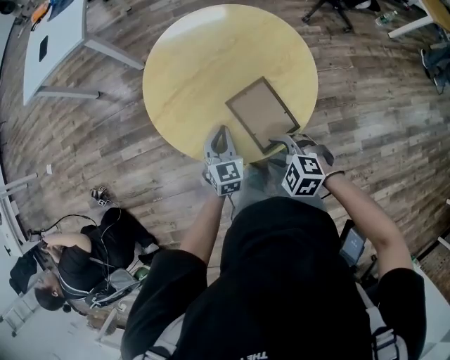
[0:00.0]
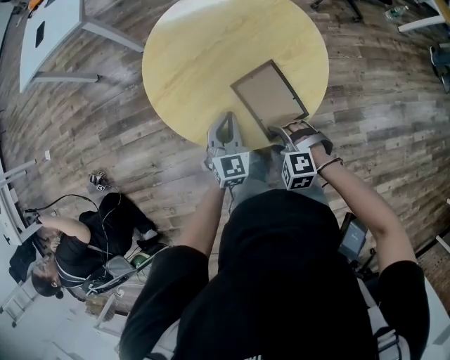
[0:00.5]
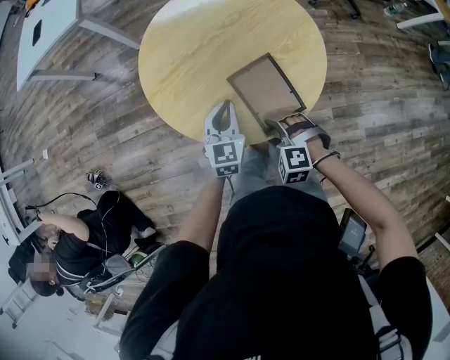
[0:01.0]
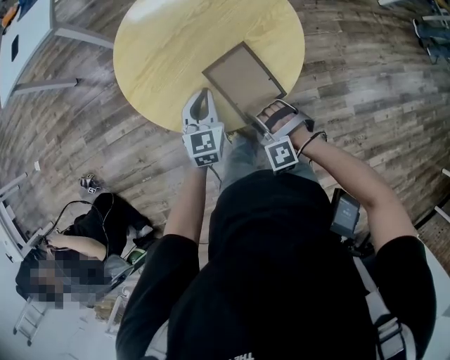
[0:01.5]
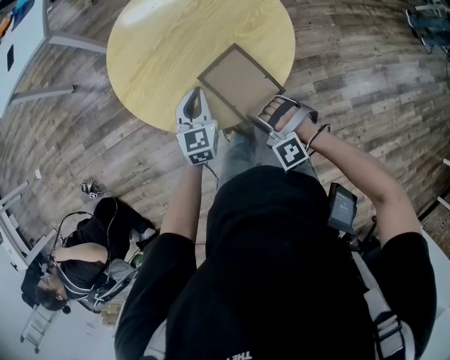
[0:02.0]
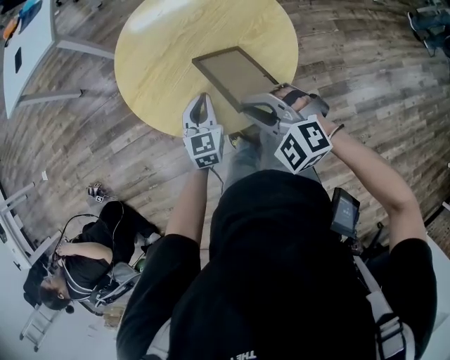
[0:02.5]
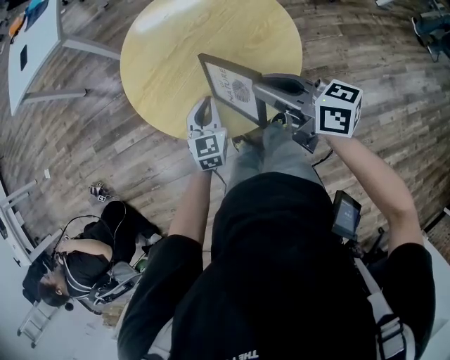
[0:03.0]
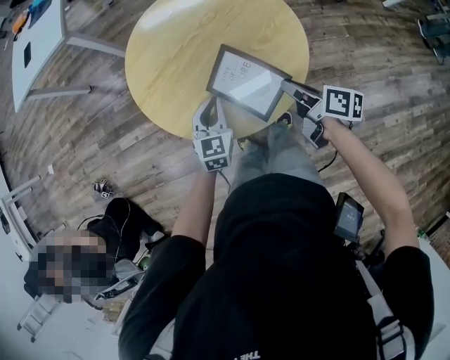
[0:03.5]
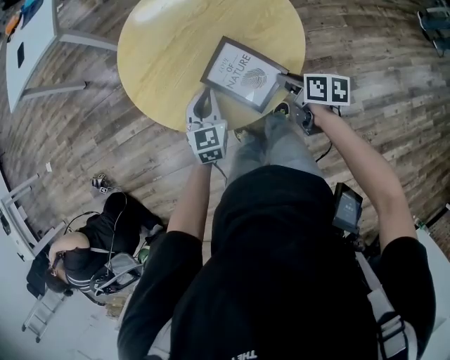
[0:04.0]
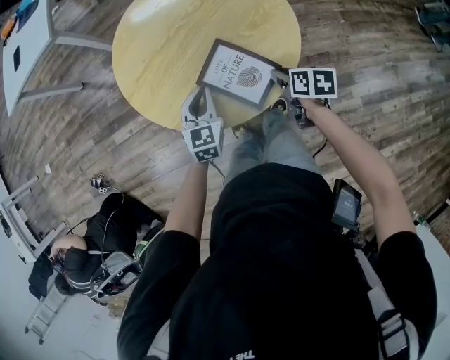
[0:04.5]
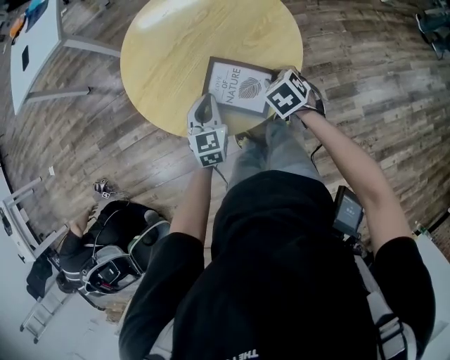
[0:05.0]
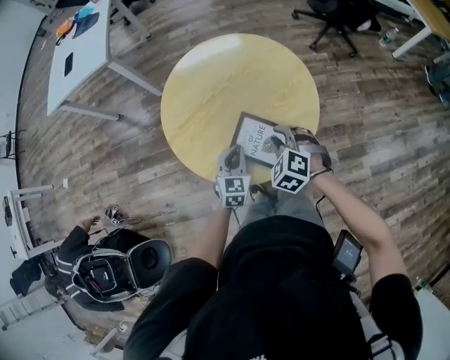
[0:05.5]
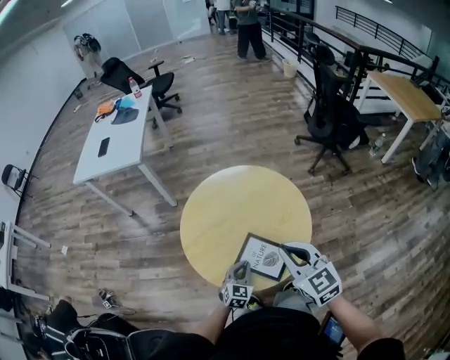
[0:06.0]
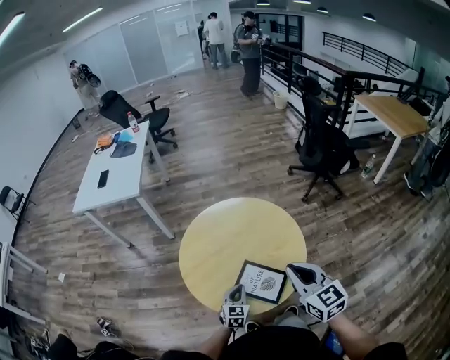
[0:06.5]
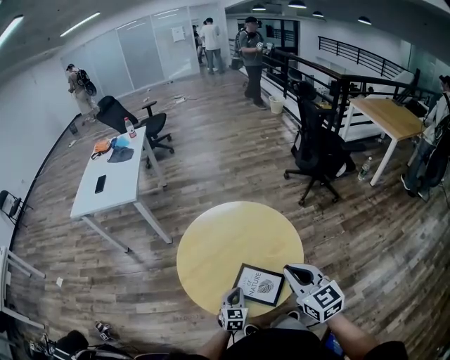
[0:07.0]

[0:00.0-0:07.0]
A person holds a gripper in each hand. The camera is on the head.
0:00.0 to 0:02.0: The right gripper turns by some 40 degrees, and closes.
0:02.0 to 0:03.5: The right gripper heads to the right, forward and upward, covering about 20 cm, and rotates around the line of its fingers by approximately 130 degrees, clockwise from behind.
0:03.5 to 0:05.0: The right gripper is displaced downward by about 5 cm, and rolls counterclockwise, seen from behind, by approximately 60 degrees.
0:05.0 to 0:07.0: The right gripper travels upward by approximately 30 cm, tilts its fingers about 50 degrees upward, and closes its fingers.

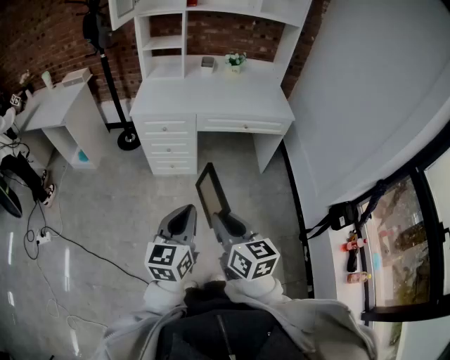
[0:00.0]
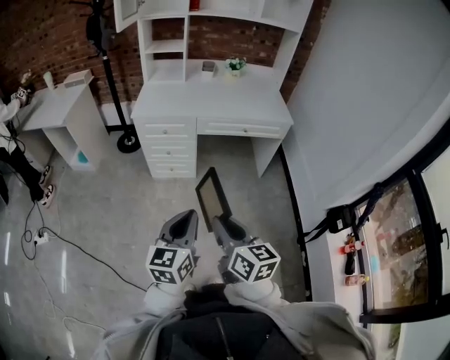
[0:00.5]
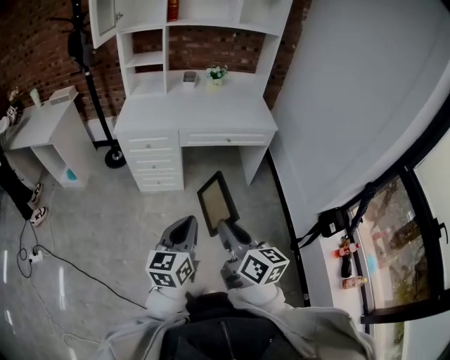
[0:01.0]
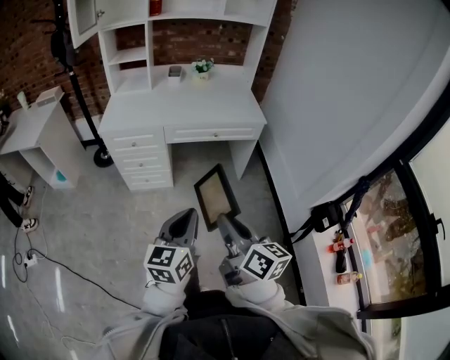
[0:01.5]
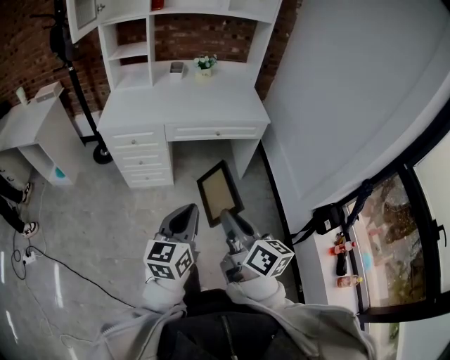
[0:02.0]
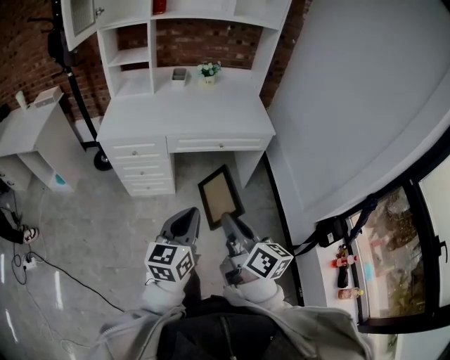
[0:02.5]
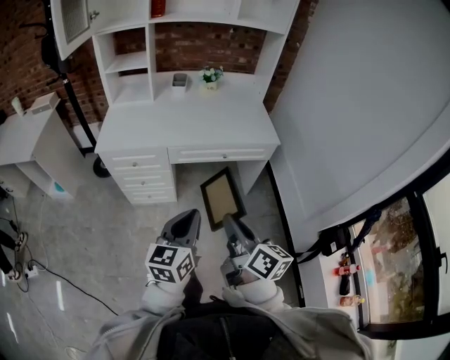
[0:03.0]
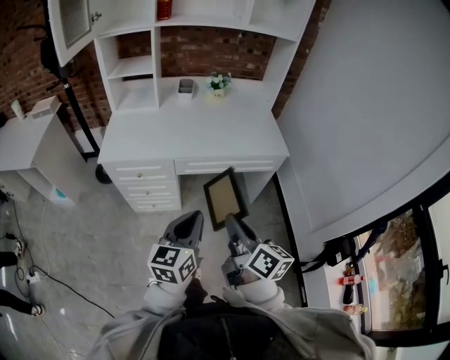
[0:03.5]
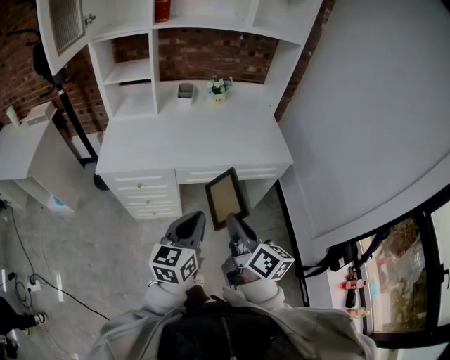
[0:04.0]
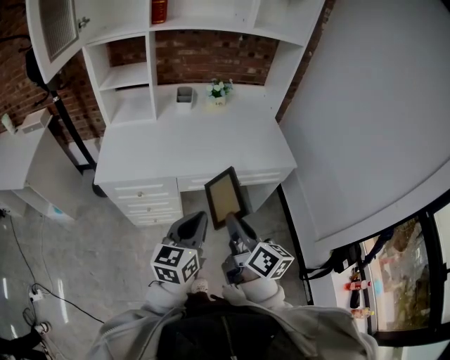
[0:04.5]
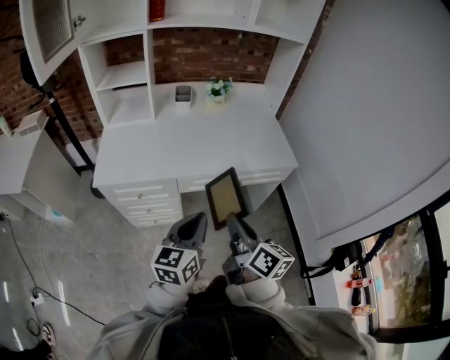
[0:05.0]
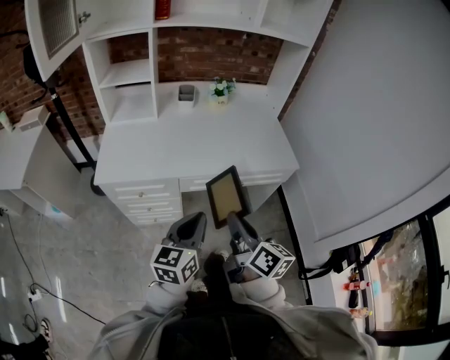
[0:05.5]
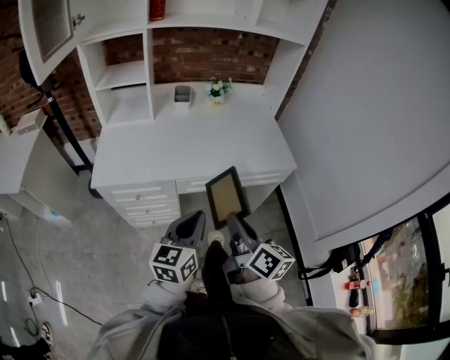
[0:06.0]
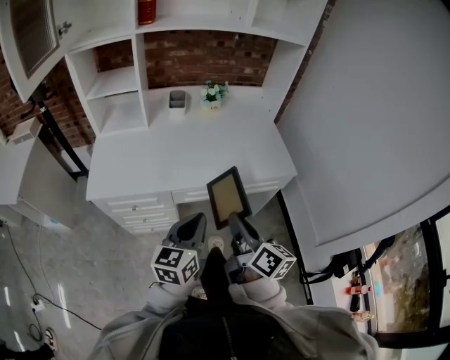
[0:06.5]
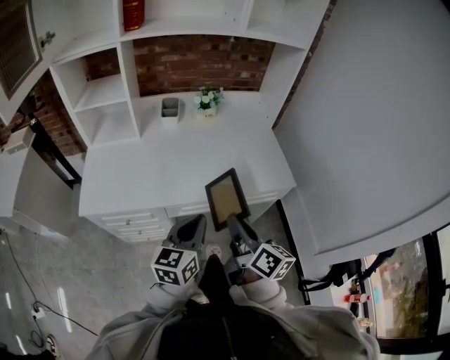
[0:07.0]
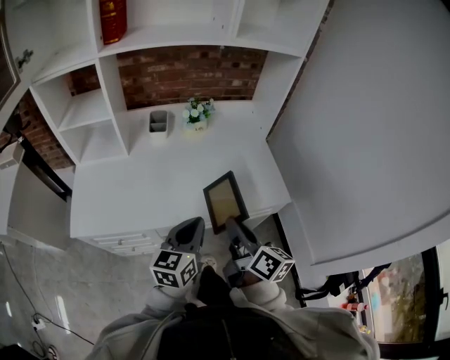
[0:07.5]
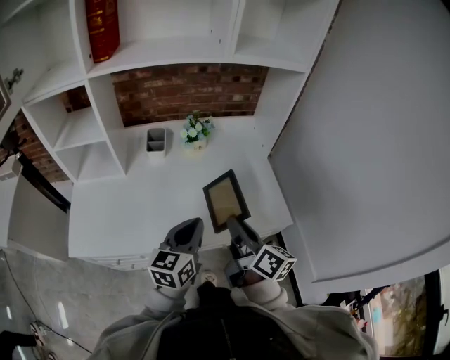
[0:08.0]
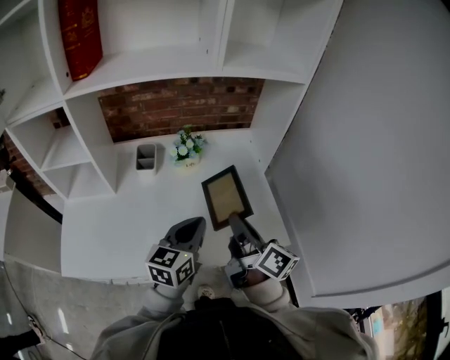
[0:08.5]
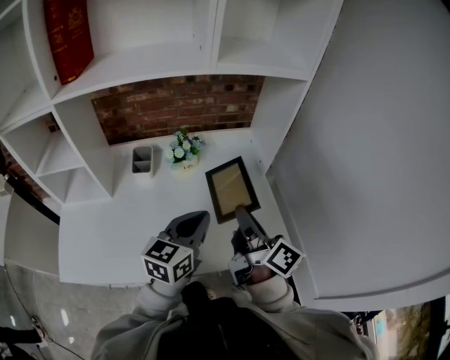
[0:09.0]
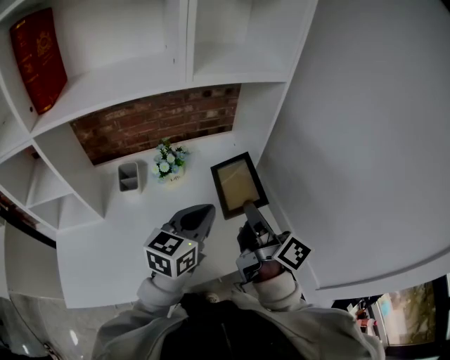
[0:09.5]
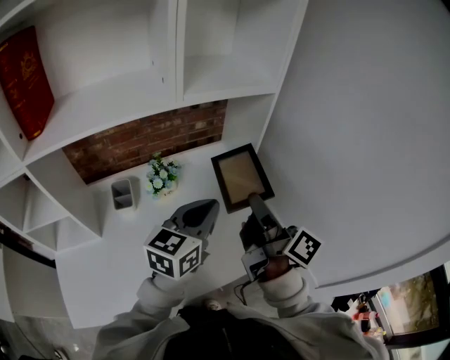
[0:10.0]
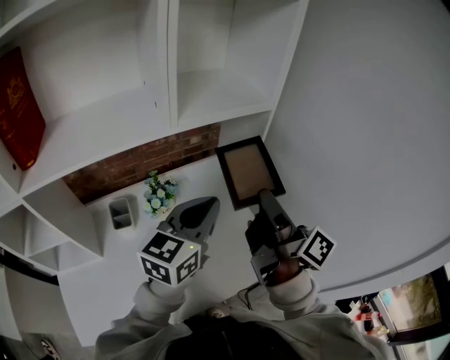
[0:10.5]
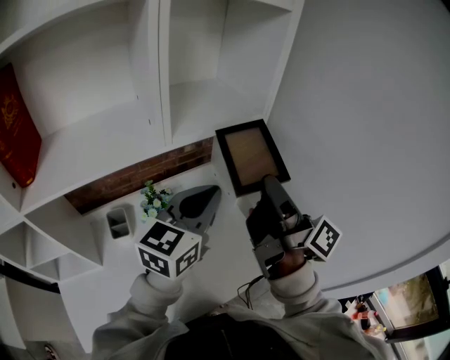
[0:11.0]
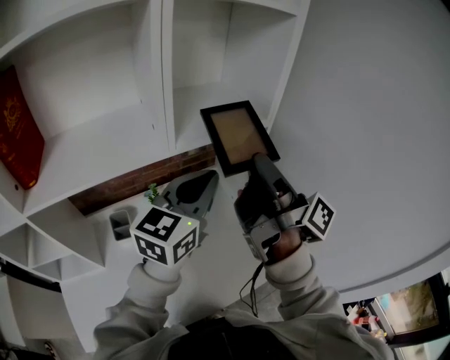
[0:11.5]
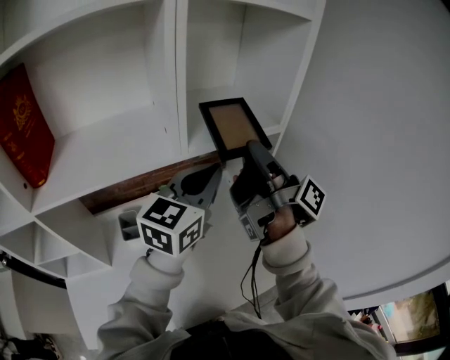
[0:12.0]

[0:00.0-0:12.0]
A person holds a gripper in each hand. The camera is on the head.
0:00.0 to 0:02.0: The grippers both shift to the right and forward by roughly 15 cm. The right gripper swivels approximately 20 degrees.
0:02.0 to 0:04.0: Both grippers move forward, roughly 30 cm.
0:04.0 to 0:06.0: The grippers both shift forward by some 5 cm.
0:06.0 to 0:08.0: Both grippers move forward, approximately 30 cm.
0:08.0 to 0:10.0: Both grippers travel together forward, upward and to the right, some 25 cm. The left gripper swivels roughly 20 degrees. Meanwhile the right gripper turns by roughly 20 degrees.
0:10.0 to 0:12.0: The two grippers go about 20 cm upward and forward. The right gripper swivels approximately 30 degrees.

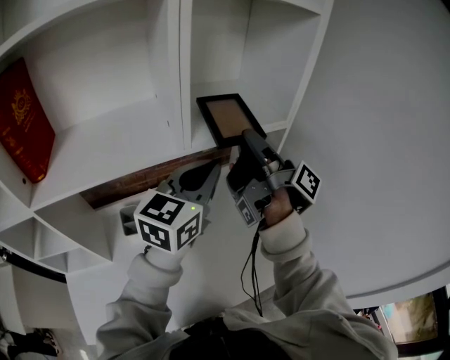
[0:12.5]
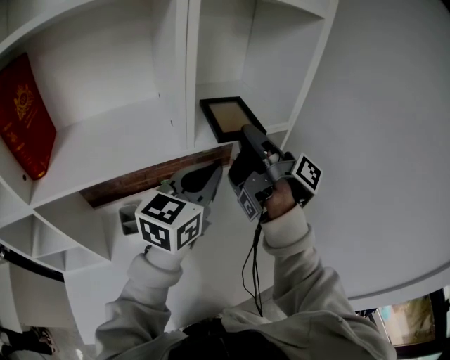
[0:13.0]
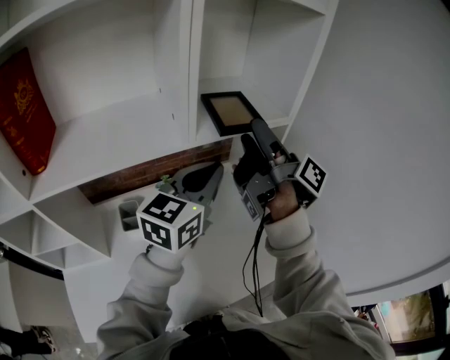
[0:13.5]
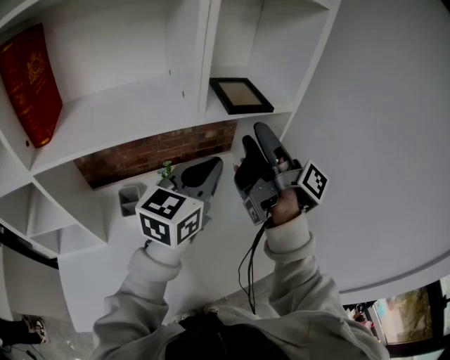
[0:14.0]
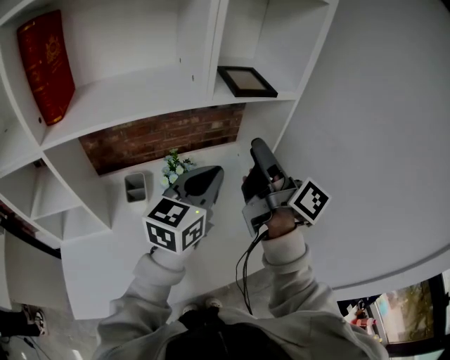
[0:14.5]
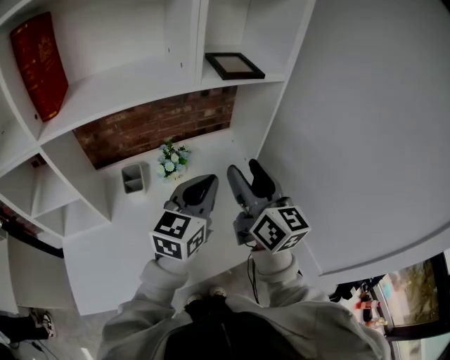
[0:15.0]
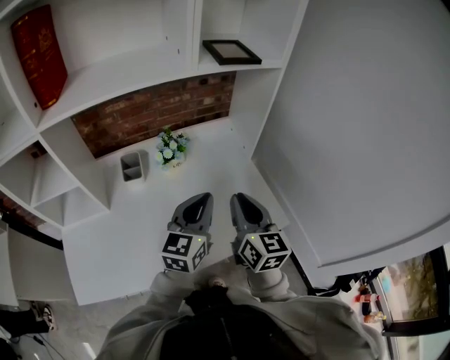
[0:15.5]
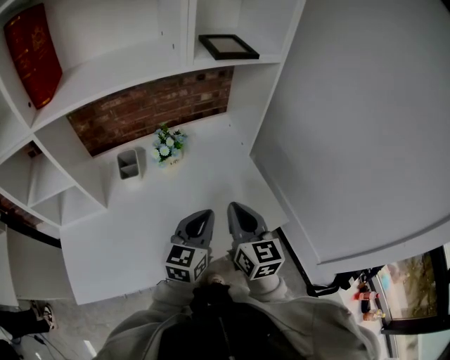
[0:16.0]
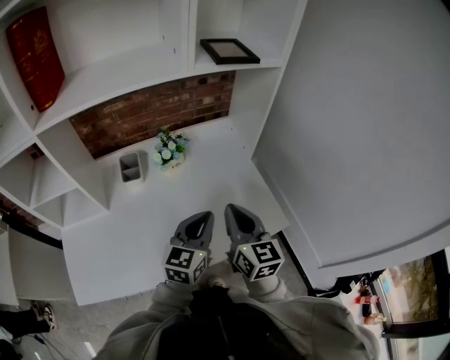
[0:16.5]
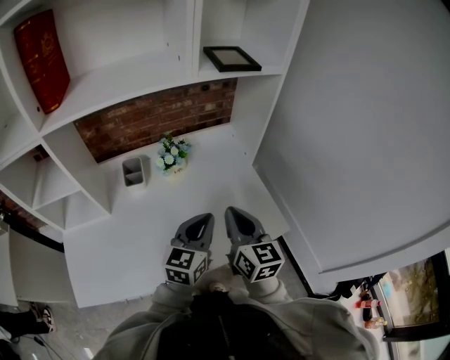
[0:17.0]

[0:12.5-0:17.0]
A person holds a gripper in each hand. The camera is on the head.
0:12.5 to 0:14.5: Both grippers move backward and downward, some 10 cm. The right gripper rotates roughly 30 degrees, and opens its fingers.
0:14.5 to 0:17.0: Both grippers move downward and backward, roughly 25 cm. The right gripper twists about 40 degrees counterclockwise, seen from behind, and closes.

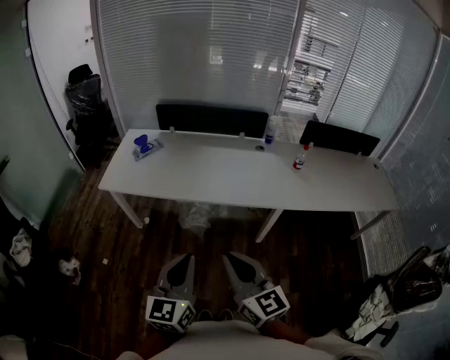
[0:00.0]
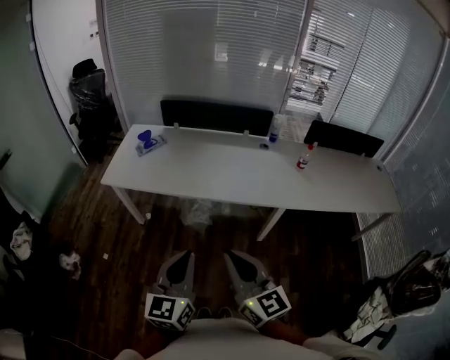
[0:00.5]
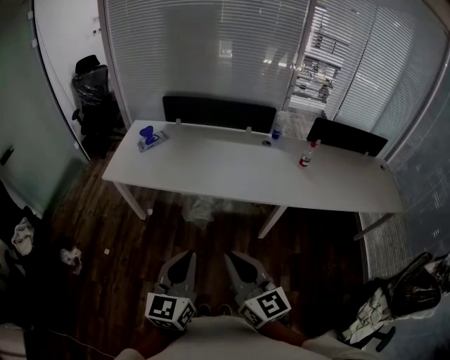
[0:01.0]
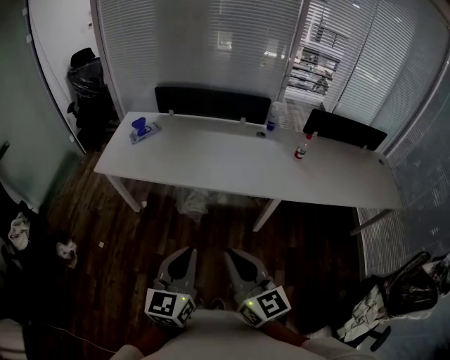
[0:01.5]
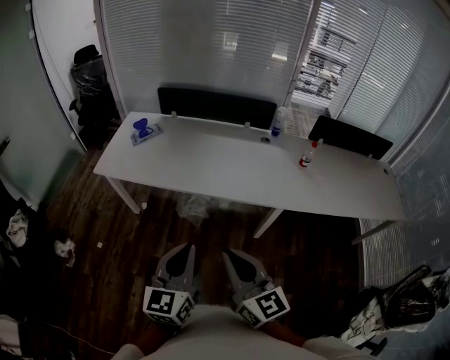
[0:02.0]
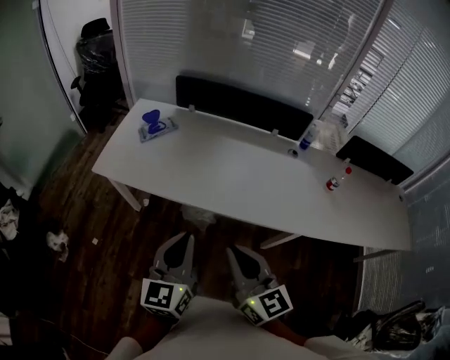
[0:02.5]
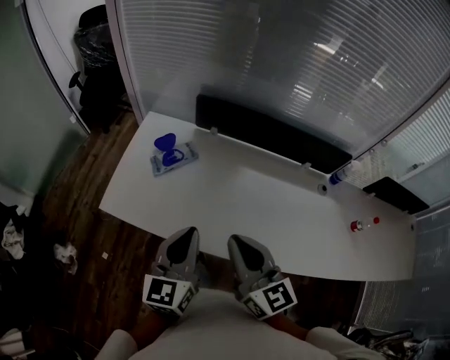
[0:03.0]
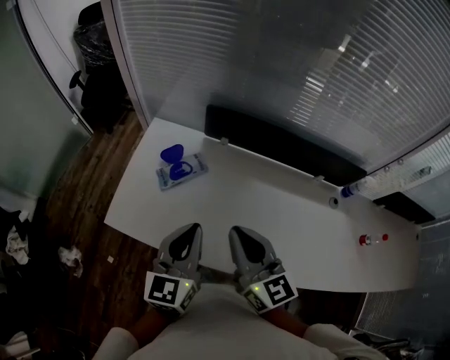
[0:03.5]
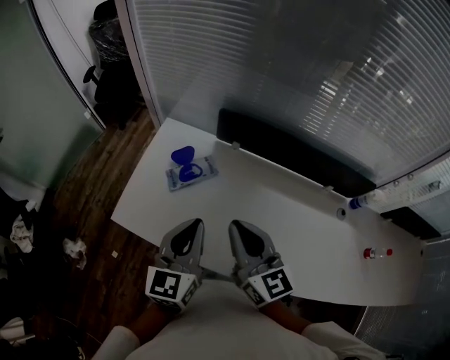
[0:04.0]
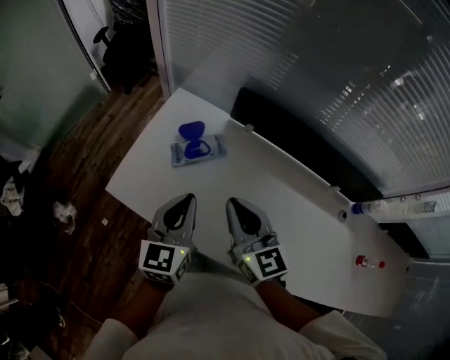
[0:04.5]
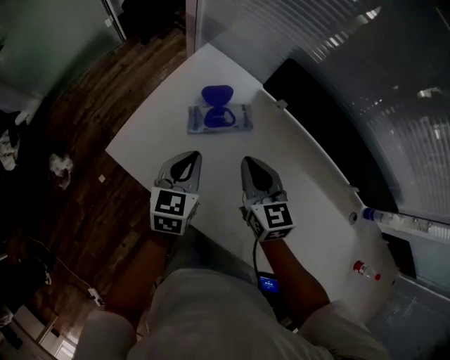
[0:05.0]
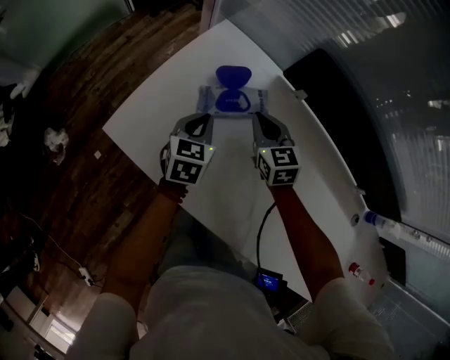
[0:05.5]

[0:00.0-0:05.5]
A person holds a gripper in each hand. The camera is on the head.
0:00.0 to 0:02.0: Both grippers move to the right, about 5 cm.
0:02.0 to 0:03.5: The pair of grippers is taken forward, roughly 60 cm.
0:03.5 to 0:05.5: The two grippers go about 35 cm downward and forward. The right gripper changes its angle by roughly 40 degrees. Meanwhile the left gripper swivels approximately 30 degrees.
